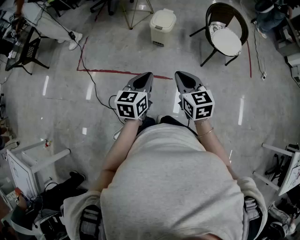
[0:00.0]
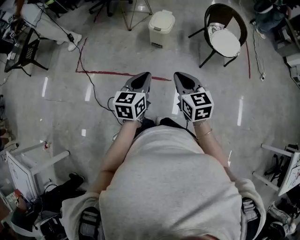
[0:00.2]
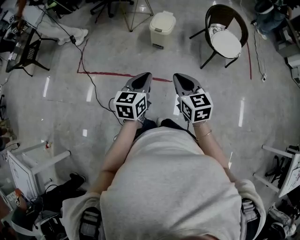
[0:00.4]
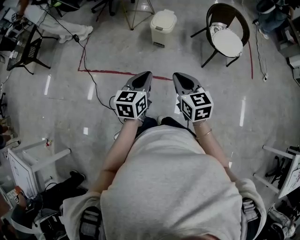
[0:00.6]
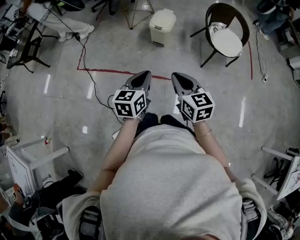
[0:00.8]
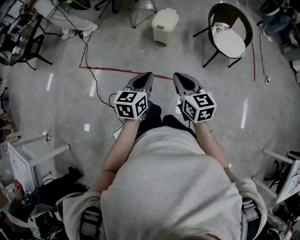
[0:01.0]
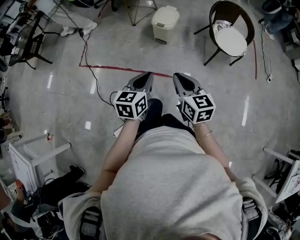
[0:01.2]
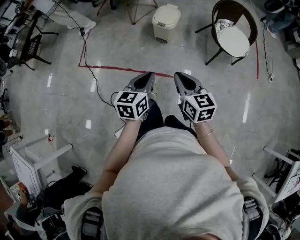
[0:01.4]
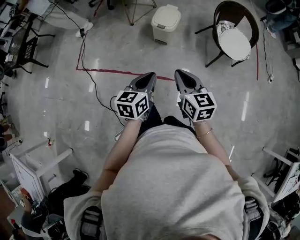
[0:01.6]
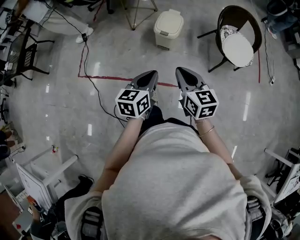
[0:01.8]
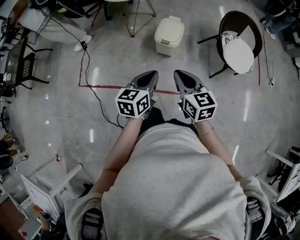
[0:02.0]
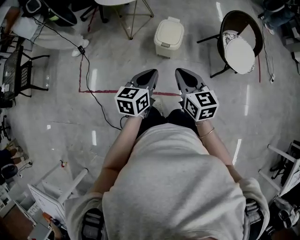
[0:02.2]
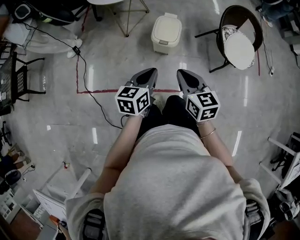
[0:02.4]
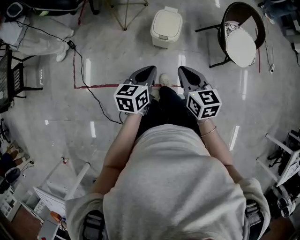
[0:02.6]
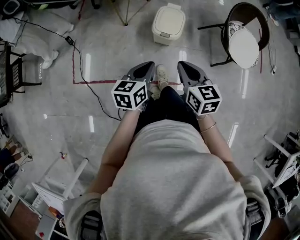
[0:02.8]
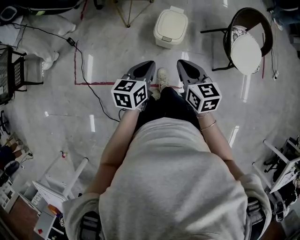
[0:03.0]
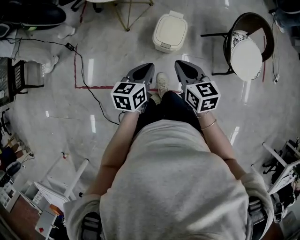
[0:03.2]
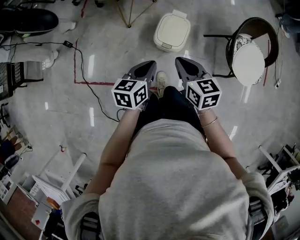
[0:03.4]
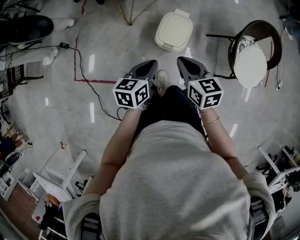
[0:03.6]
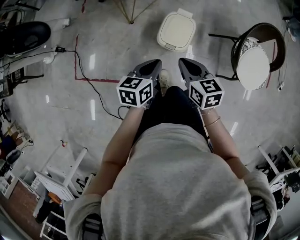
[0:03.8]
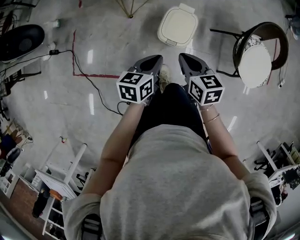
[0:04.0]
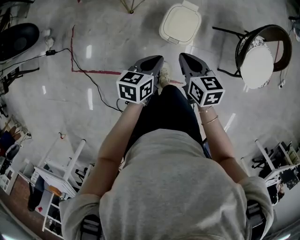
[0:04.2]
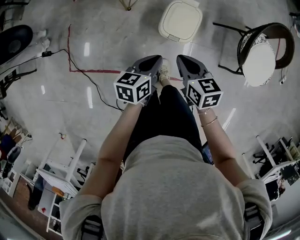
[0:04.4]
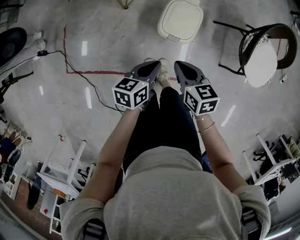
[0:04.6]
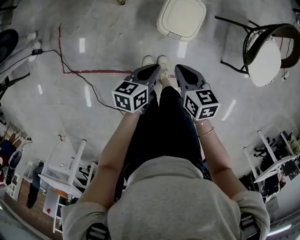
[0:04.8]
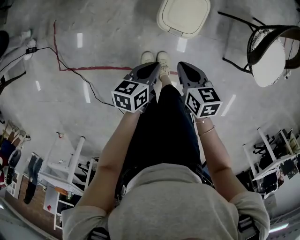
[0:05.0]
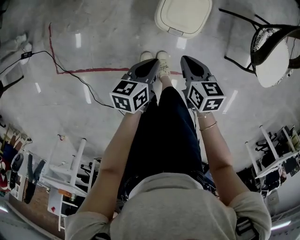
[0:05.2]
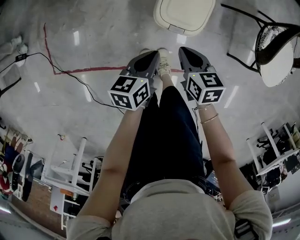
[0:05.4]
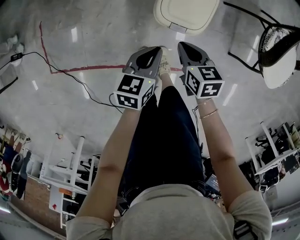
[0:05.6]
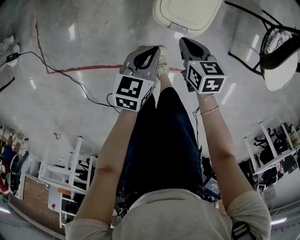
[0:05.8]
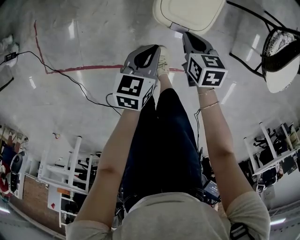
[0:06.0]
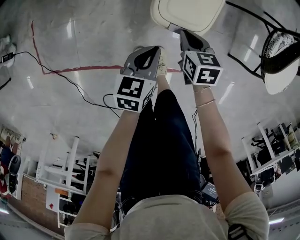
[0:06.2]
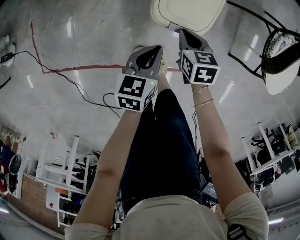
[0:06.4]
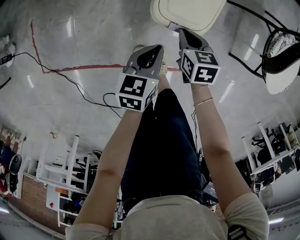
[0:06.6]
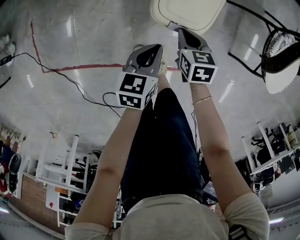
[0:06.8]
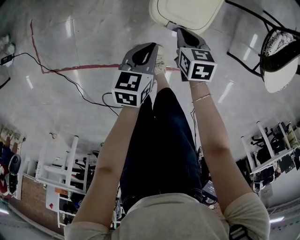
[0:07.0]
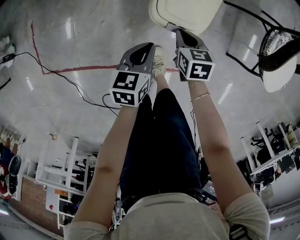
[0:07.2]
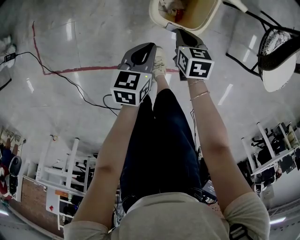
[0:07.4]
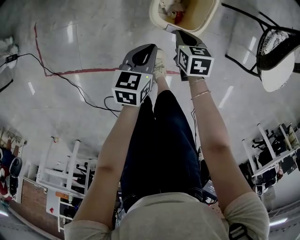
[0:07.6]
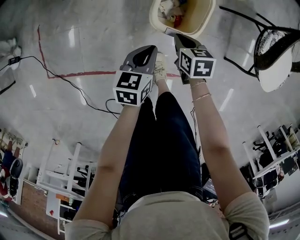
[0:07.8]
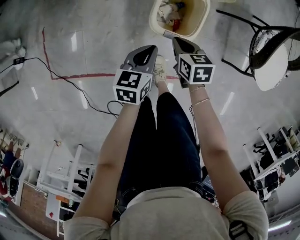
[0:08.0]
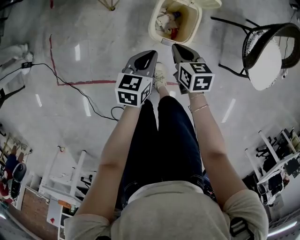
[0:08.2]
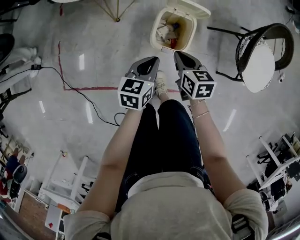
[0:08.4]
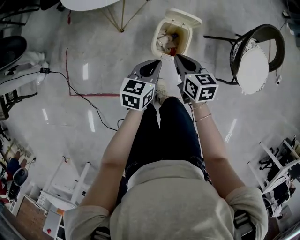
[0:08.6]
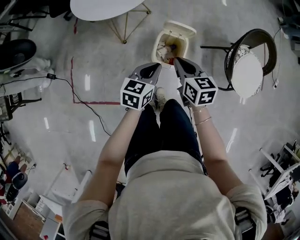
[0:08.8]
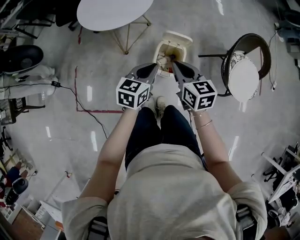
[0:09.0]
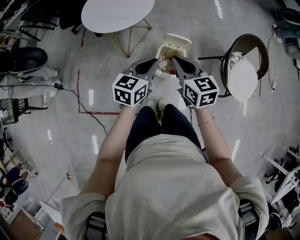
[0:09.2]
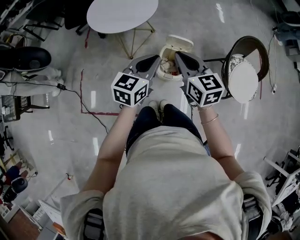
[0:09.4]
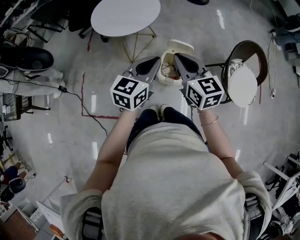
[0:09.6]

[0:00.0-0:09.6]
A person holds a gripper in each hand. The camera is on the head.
0:00.0 to 0:01.6: Both grippers travel together forward, some 10 cm.
0:01.6 to 0:03.2: The grippers both shift forward by some 35 cm.
0:03.2 to 0:04.8: Both grippers move downward, approximately 20 cm. The right gripper changes its angle by roughly 20 degrees.
0:04.8 to 0:06.4: The left gripper moves downward, approximately 15 cm. The right gripper shifts approximately 25 cm downward and forward.
0:06.4 to 0:08.0: The grippers both shift upward by about 5 cm.
0:08.0 to 0:09.6: The two grippers go about 40 cm upward. The right gripper angles its fingers upward, by approximately 40 degrees. Meanwhile the left gripper rotates roughly 30 degrees.

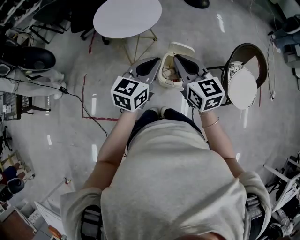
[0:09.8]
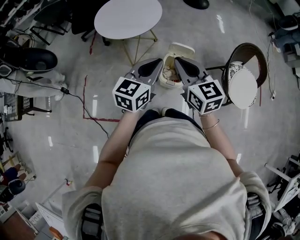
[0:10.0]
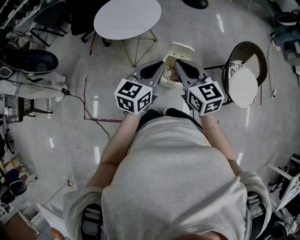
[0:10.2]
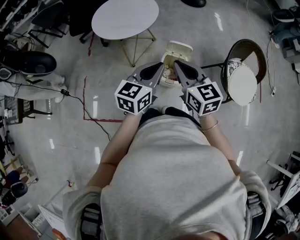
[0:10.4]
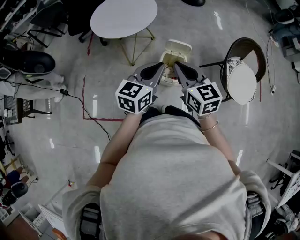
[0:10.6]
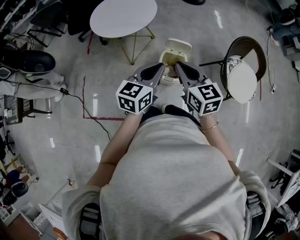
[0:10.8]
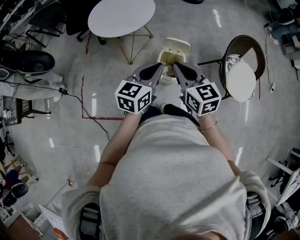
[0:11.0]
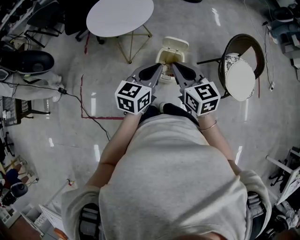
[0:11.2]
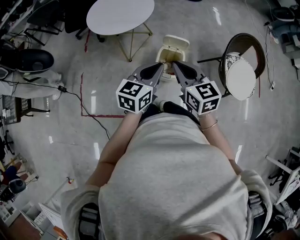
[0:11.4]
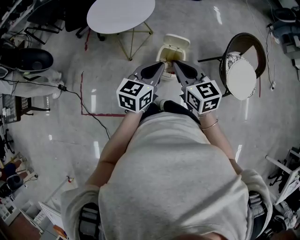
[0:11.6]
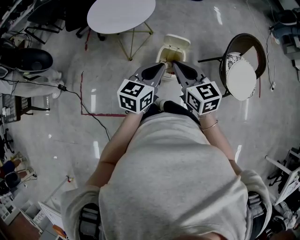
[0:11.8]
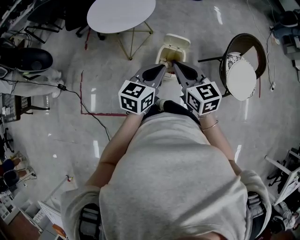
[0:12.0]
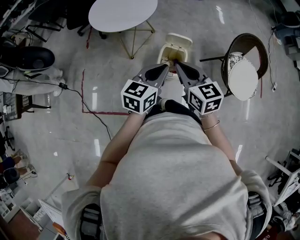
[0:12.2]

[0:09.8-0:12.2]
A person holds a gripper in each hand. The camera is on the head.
0:09.8 to 0:11.0: The right gripper shifts by approximately 5 cm.
0:11.0 to 0:12.2: The grippers stay close to where they were, moving slightly.

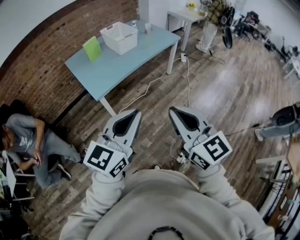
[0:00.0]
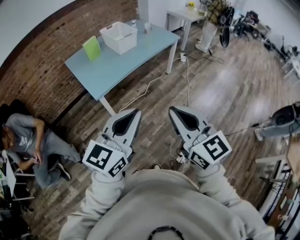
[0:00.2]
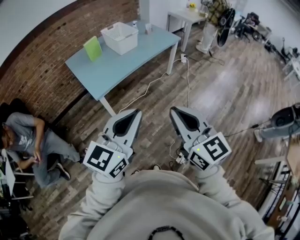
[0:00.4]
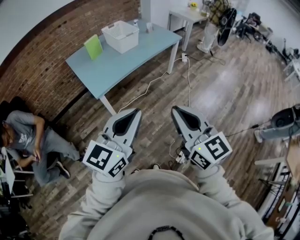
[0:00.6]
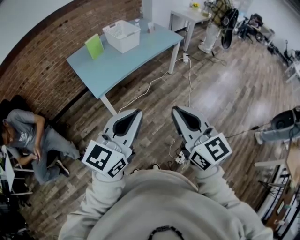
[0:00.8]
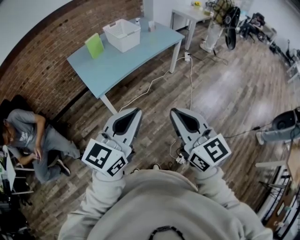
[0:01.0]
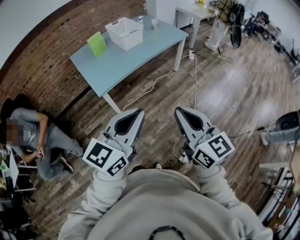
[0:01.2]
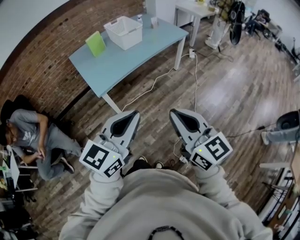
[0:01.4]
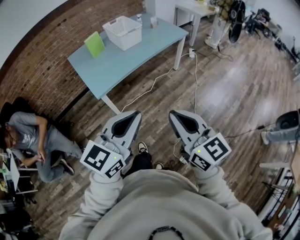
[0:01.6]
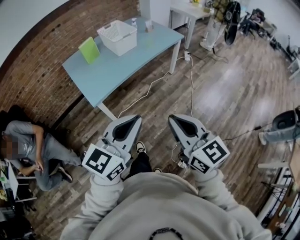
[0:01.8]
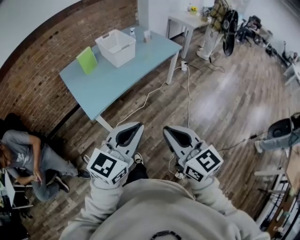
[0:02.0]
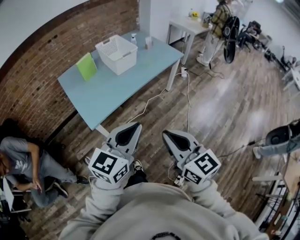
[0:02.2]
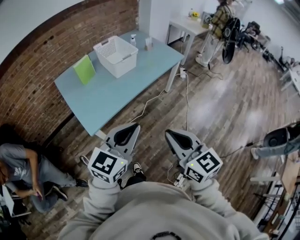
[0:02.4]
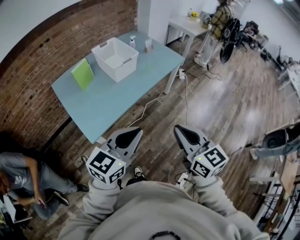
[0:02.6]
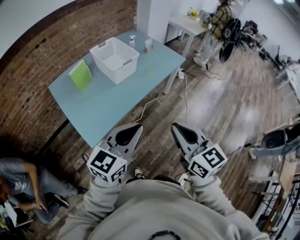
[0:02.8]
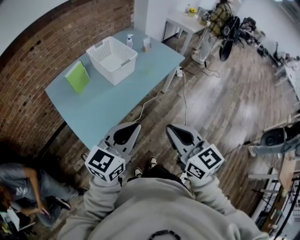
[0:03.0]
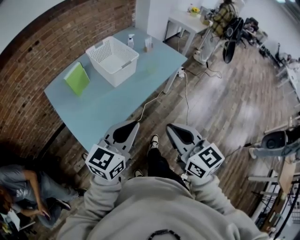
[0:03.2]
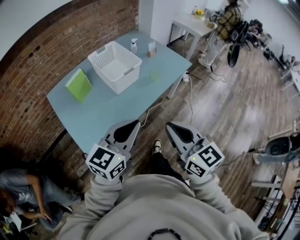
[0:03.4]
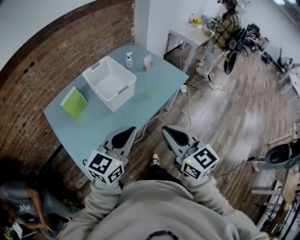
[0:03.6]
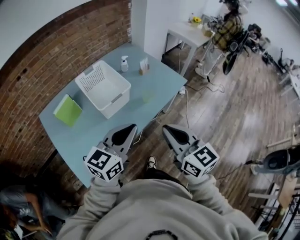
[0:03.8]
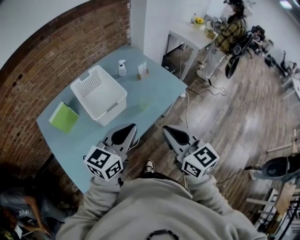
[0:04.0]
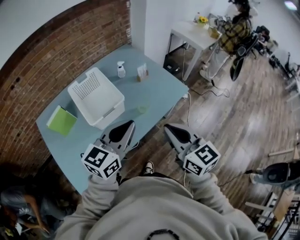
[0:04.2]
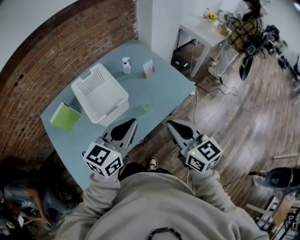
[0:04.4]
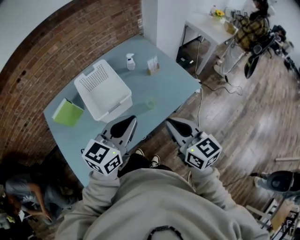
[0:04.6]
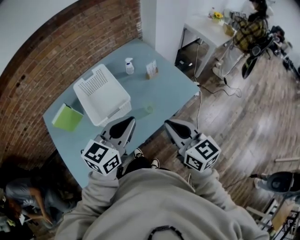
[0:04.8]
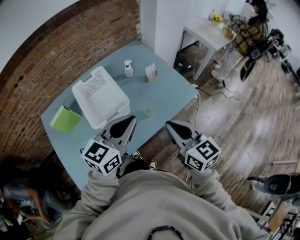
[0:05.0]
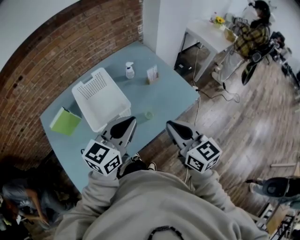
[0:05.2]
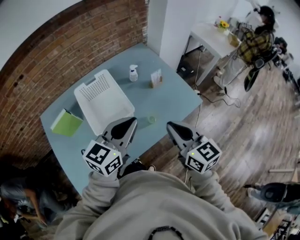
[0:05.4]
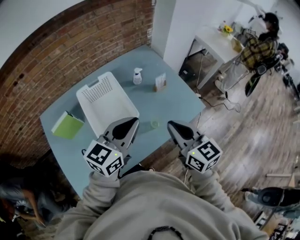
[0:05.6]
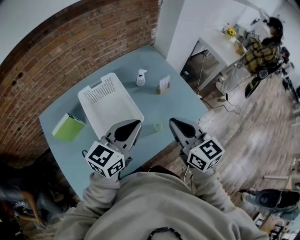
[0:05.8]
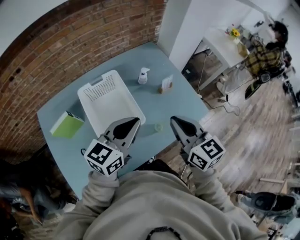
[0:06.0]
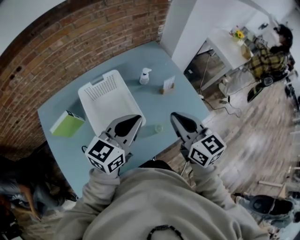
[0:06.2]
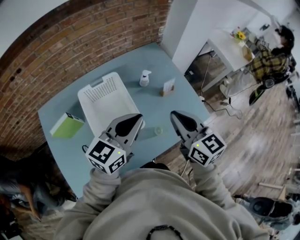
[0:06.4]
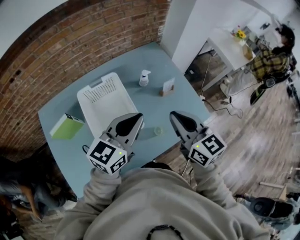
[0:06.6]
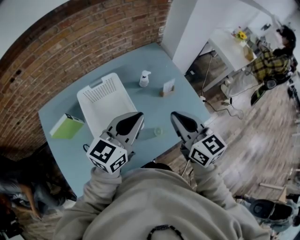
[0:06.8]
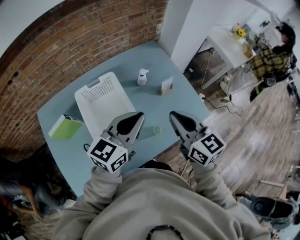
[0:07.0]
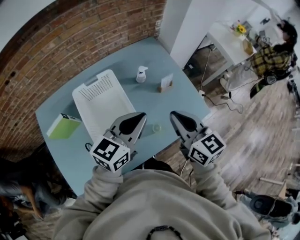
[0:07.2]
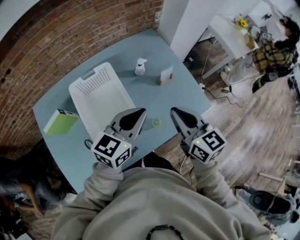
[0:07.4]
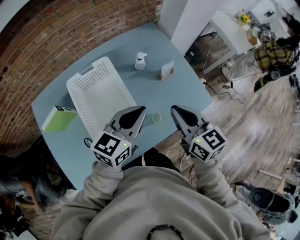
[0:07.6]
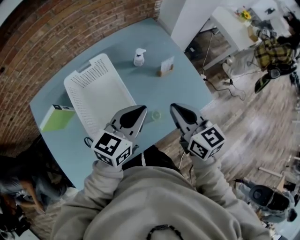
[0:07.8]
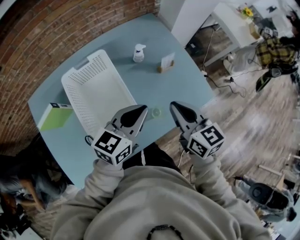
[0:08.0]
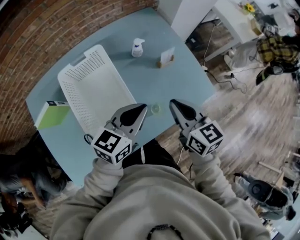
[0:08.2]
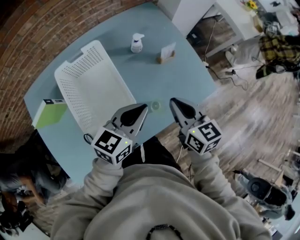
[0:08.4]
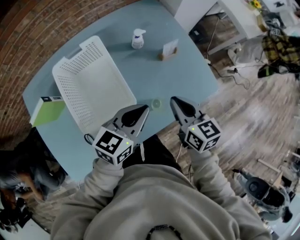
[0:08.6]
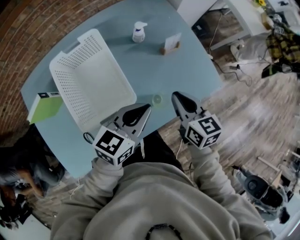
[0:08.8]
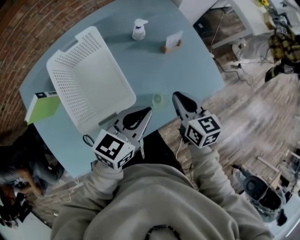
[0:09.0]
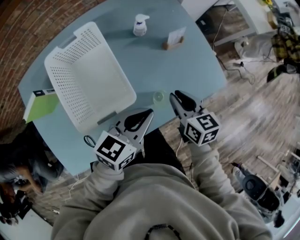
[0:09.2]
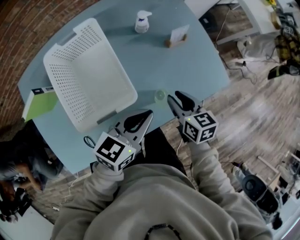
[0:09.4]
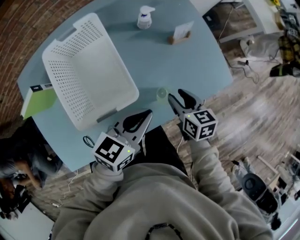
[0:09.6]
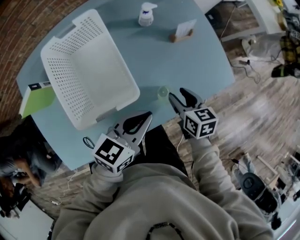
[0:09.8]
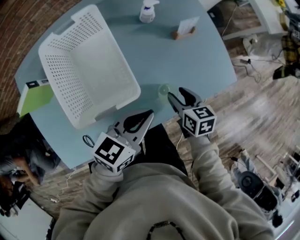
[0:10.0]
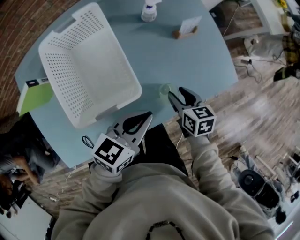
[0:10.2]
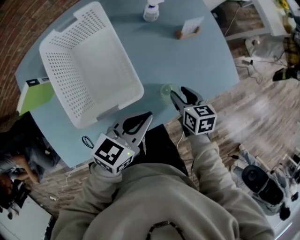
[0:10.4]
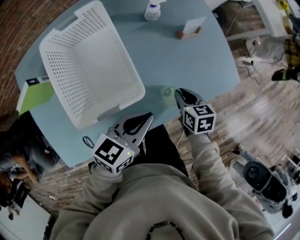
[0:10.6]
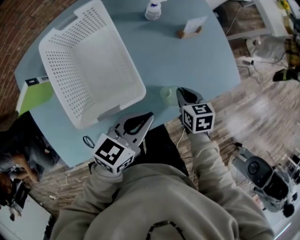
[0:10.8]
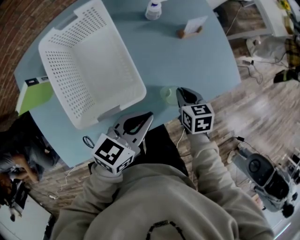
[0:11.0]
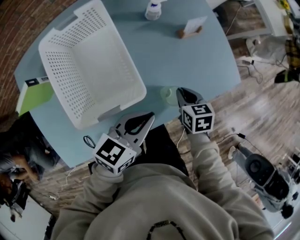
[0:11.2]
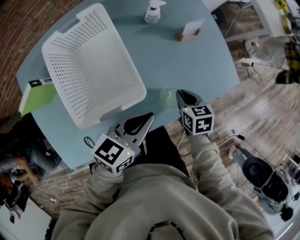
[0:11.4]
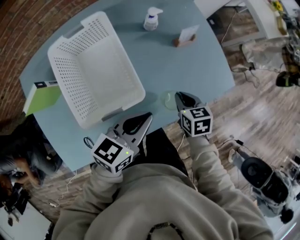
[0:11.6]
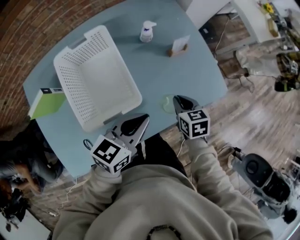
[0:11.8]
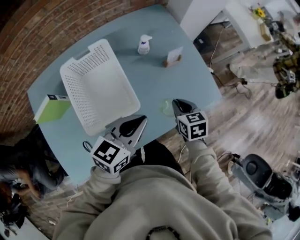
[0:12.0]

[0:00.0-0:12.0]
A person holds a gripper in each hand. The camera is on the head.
0:00.0 to 0:01.6: The left gripper changes place by roughly 5 cm; the right gripper goes approximately 5 cm forward.
0:01.6 to 0:03.0: The grippers both shift forward by some 35 cm.
0:03.0 to 0:04.4: The two grippers travel together, forward, about 40 cm.
0:04.4 to 0:06.0: The two grippers go about 20 cm forward and to the left.
0:06.0 to 0:07.6: The left gripper goes roughly 5 cm downward and to the right; the right gripper shifts roughly 5 cm downward.
0:07.6 to 0:09.0: The right gripper moves downward, about 15 cm. The left gripper goes approximately 10 cm downward.
0:09.0 to 0:10.4: The left gripper is displaced downward by about 5 cm, while the right gripper moves downward, about 15 cm, and opens its fingers.
0:10.4 to 0:12.0: The grippers both shift upward by approximately 10 cm. The right gripper closes its fingers.
